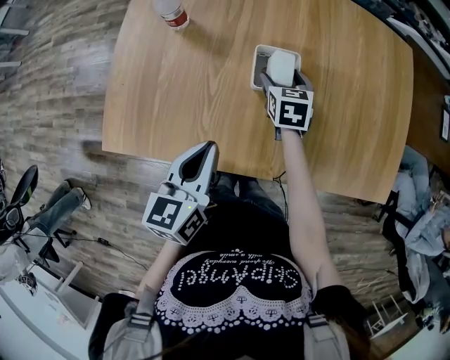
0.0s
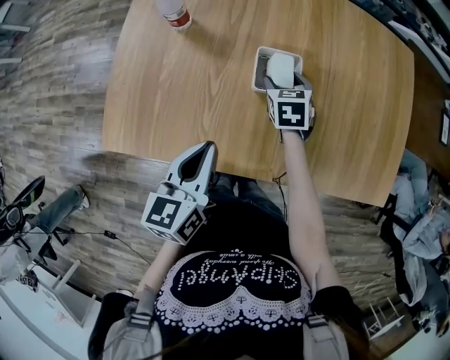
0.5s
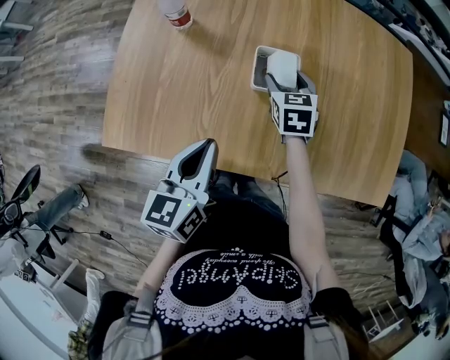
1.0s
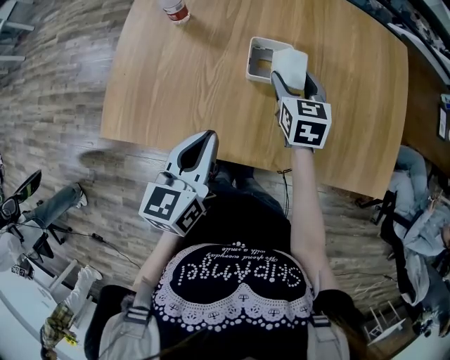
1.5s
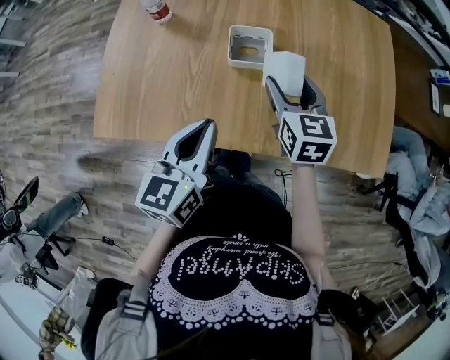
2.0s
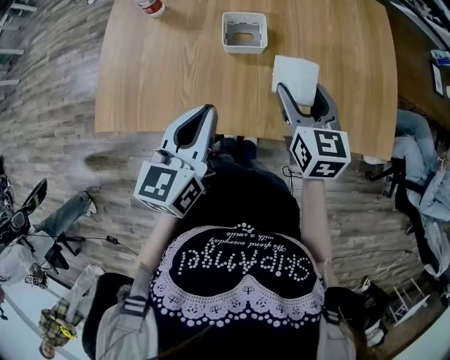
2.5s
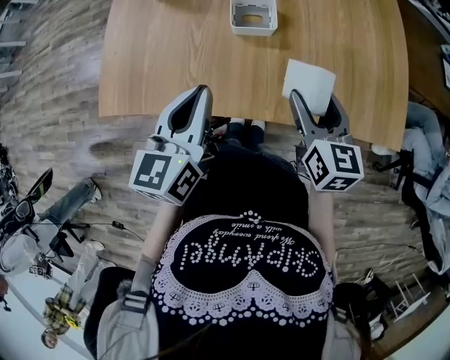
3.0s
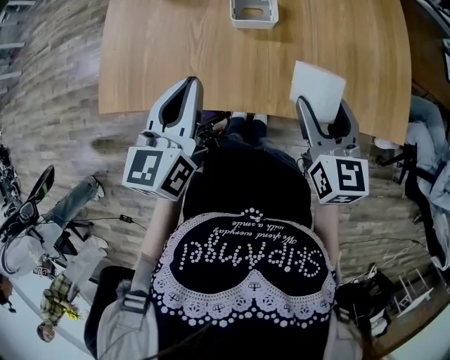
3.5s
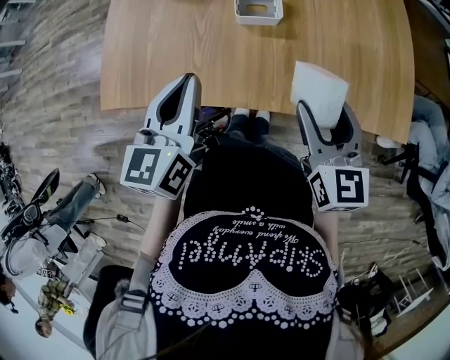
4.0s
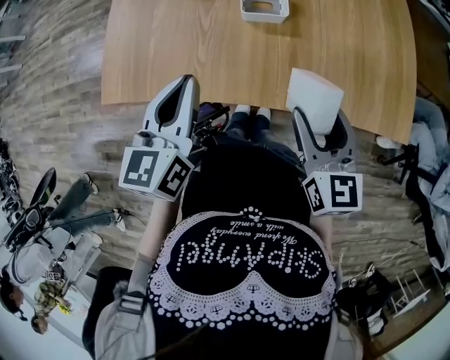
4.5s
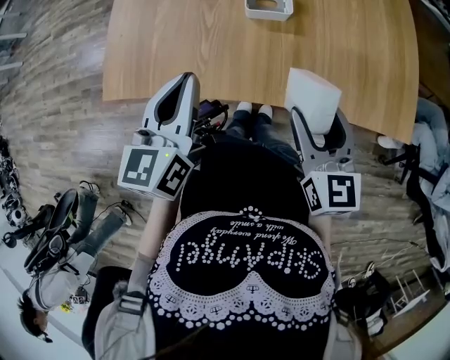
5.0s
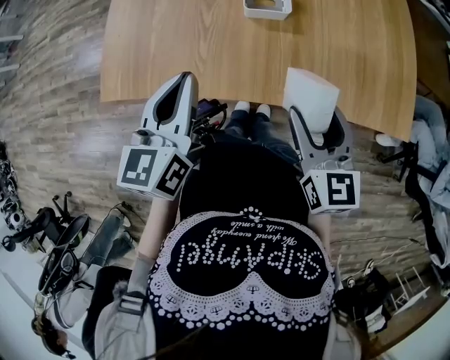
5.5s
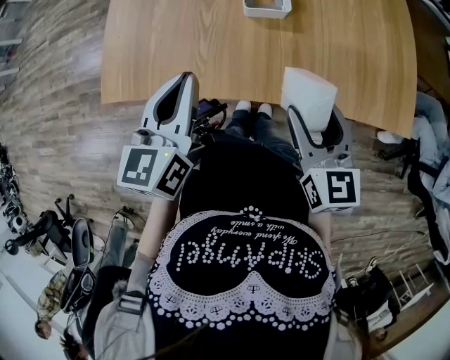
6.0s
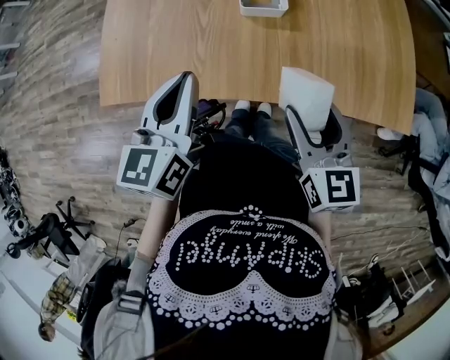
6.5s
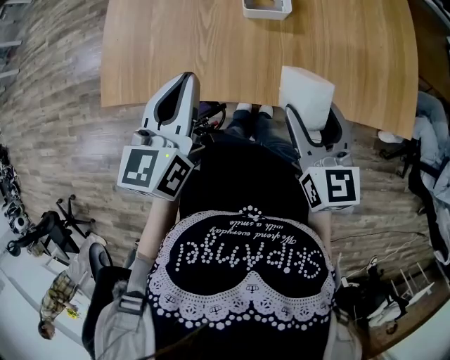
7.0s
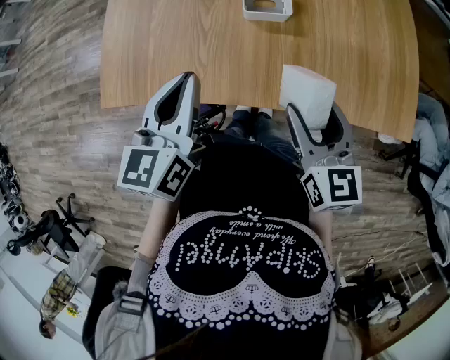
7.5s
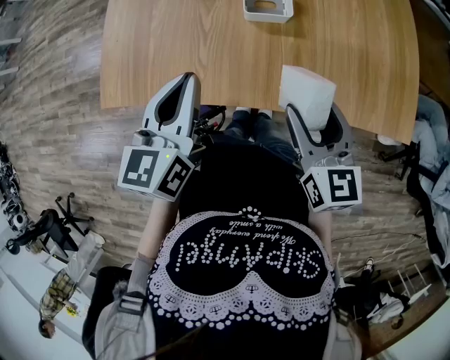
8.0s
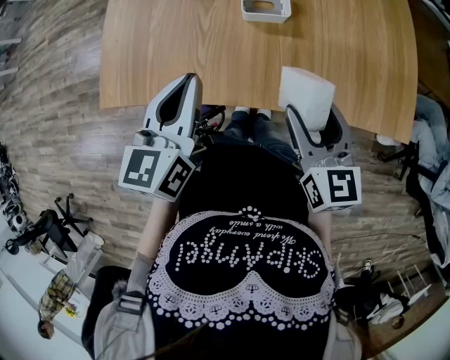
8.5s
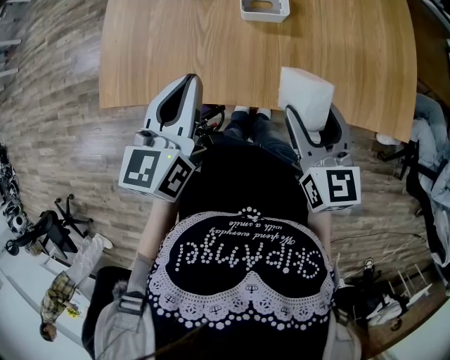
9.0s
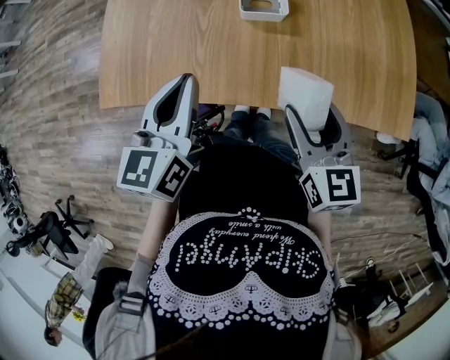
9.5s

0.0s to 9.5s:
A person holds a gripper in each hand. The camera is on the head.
0.0s to 2.0s: The right gripper heads upward, backward and to the right, covering roughly 20 cm. Meanwhile the left gripper ends up approximately 5 cm from where it was.
2.0s to 4.0s: The left gripper moves to the left, approximately 5 cm, while the right gripper moves backward, roughly 15 cm.
4.0s to 5.5s: The grippers make only small movements.
5.5s to 9.5s: Neither gripper changes place.

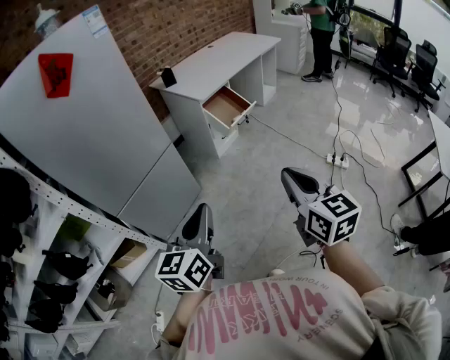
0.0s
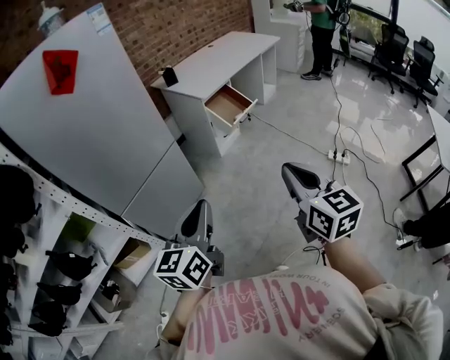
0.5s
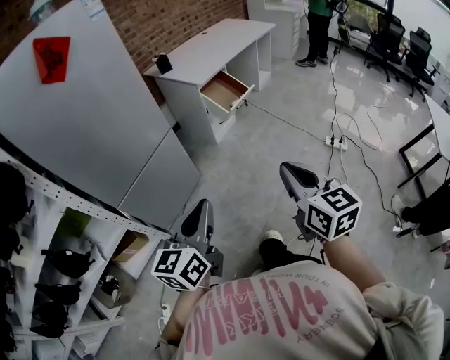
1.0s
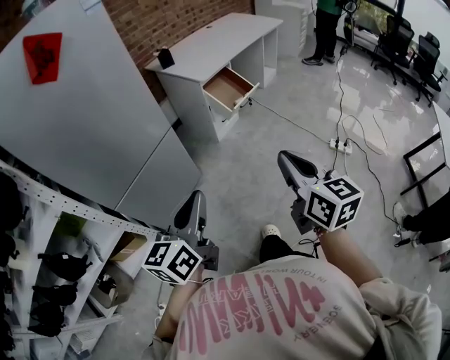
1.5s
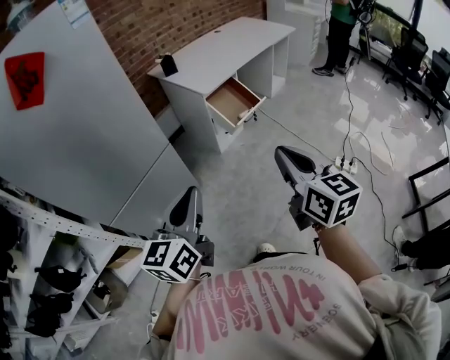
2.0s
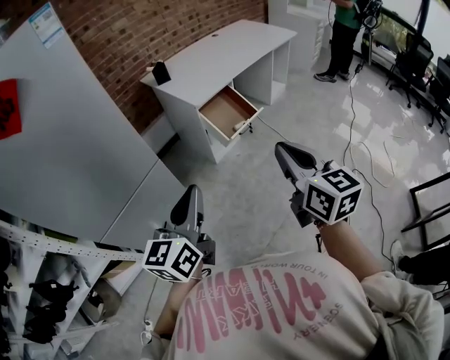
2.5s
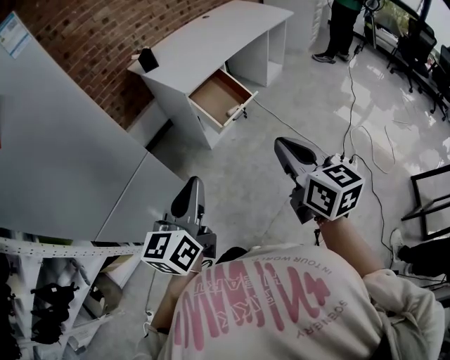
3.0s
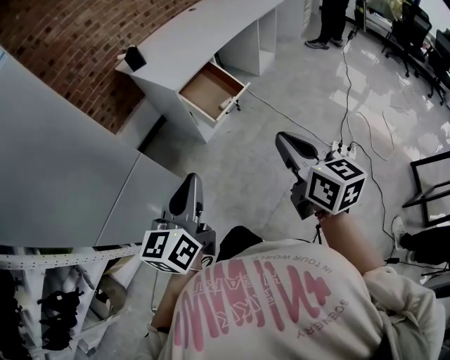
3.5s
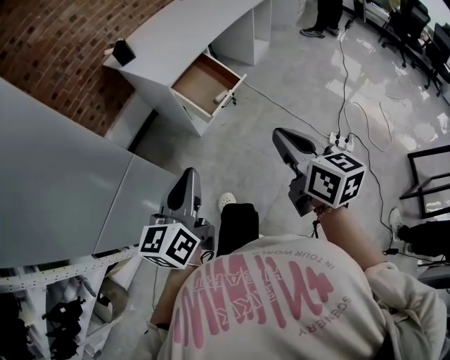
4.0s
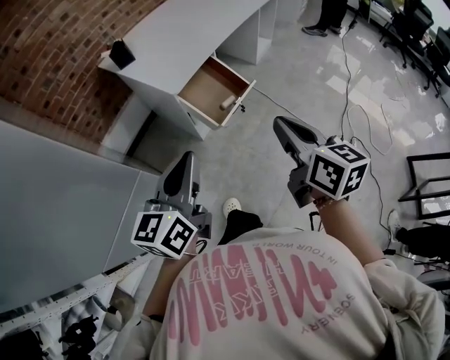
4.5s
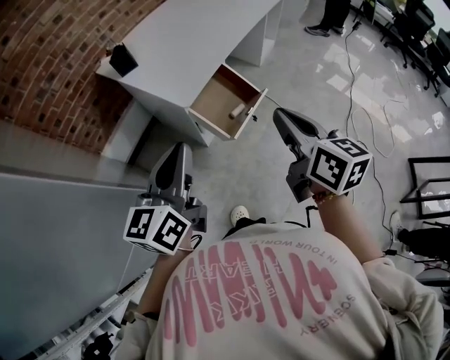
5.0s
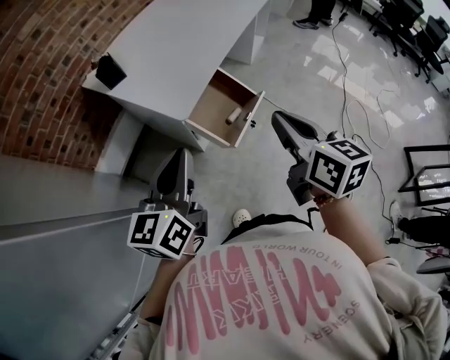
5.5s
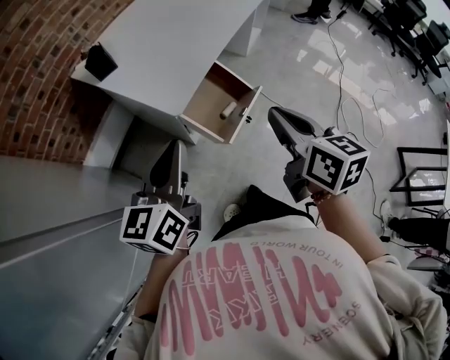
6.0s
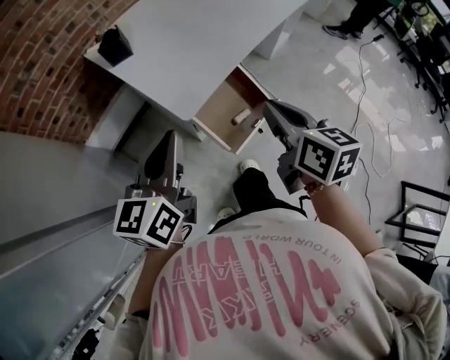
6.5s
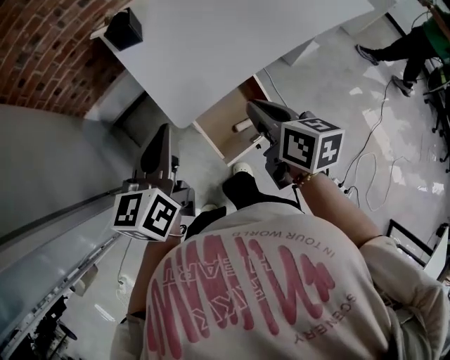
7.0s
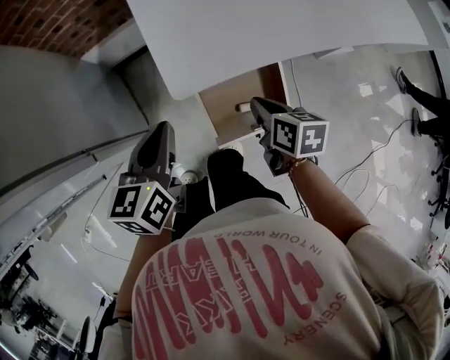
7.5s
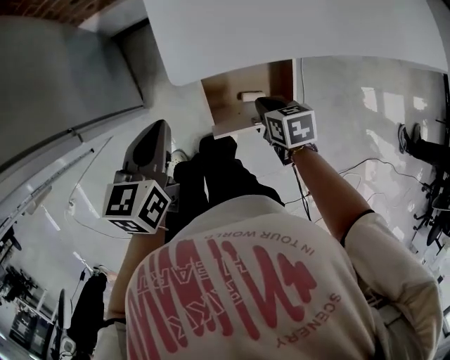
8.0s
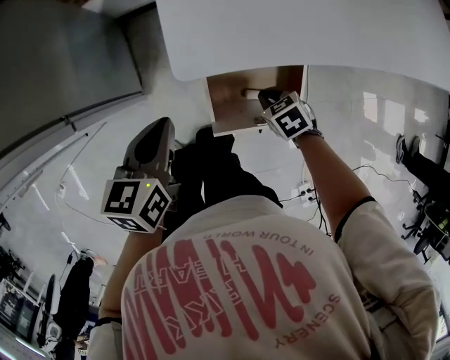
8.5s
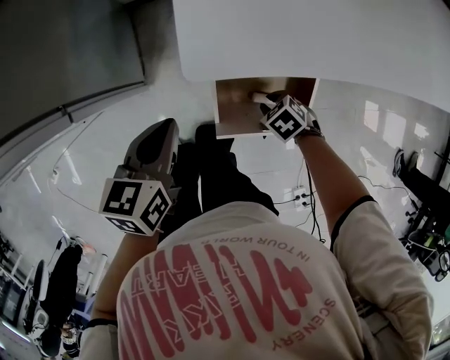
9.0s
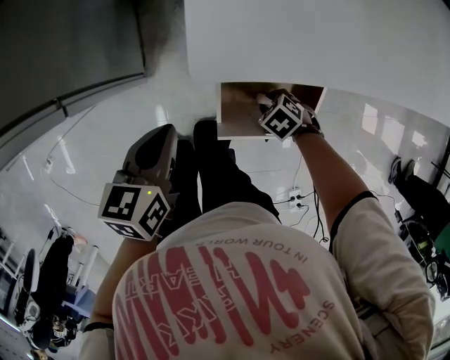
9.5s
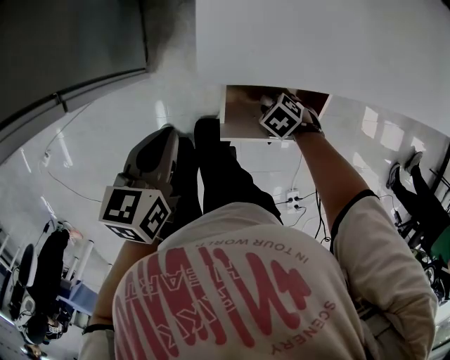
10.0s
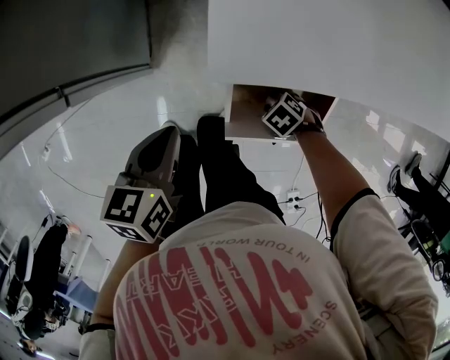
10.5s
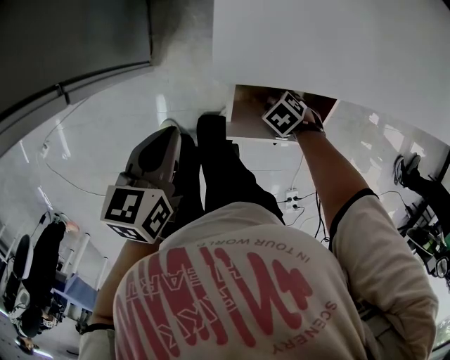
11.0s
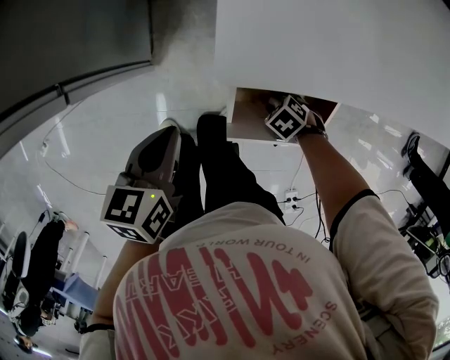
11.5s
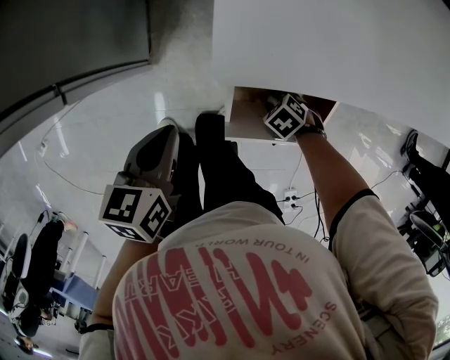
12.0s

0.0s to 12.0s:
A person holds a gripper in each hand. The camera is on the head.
0.0s to 2.0s: The two grippers go roughly 15 cm forward.
2.0s to 4.0s: The right gripper is displaced forward, to the right and downward by approximately 20 cm. The left gripper shifts roughly 20 cm forward and to the right.
4.0s to 6.0s: The right gripper goes about 30 cm forward and to the left; the left gripper shifts roughly 30 cm forward.
6.0s to 8.0s: The left gripper is displaced downward by about 20 cm, and turns by approximately 50 degrees, while the right gripper travels downward by roughly 35 cm, and tilts its fingers some 40 degrees downward.
8.0s to 10.0s: The right gripper shifts some 15 cm downward, twists roughly 50 degrees counterclockwise, seen from behind, and opens up. Meanwhile the left gripper travels downward by some 10 cm.
10.0s to 12.0s: The grippers make only small movements.

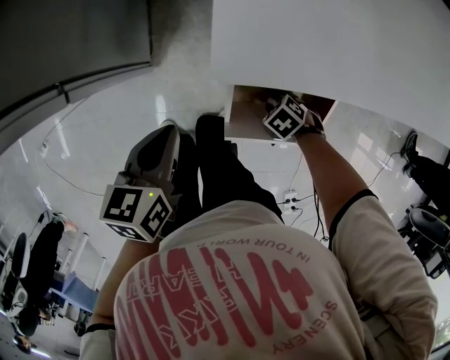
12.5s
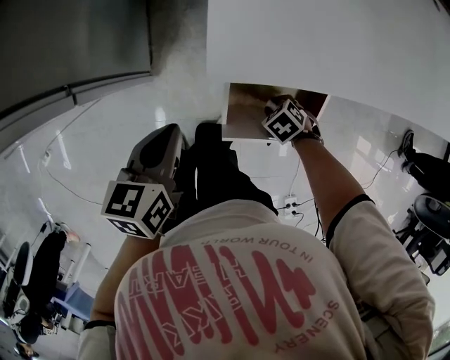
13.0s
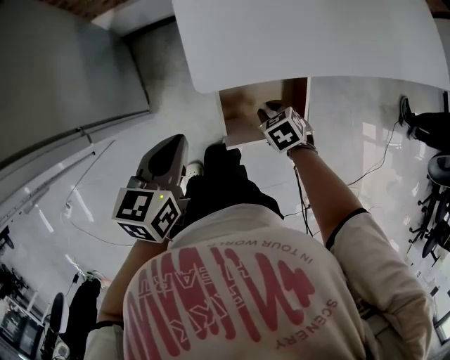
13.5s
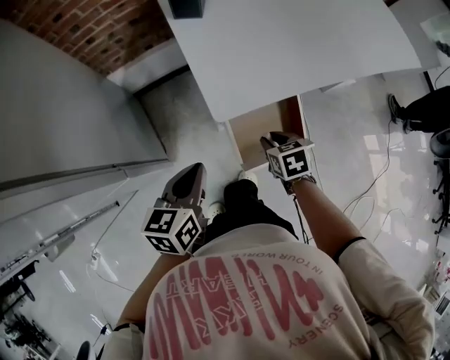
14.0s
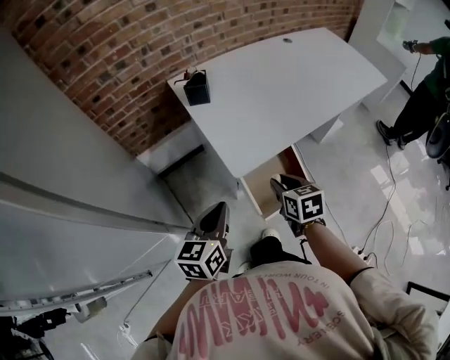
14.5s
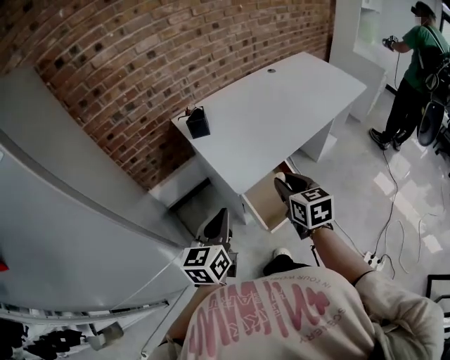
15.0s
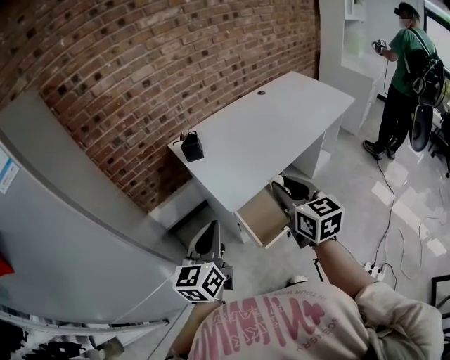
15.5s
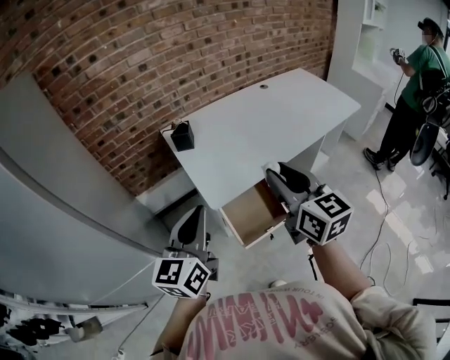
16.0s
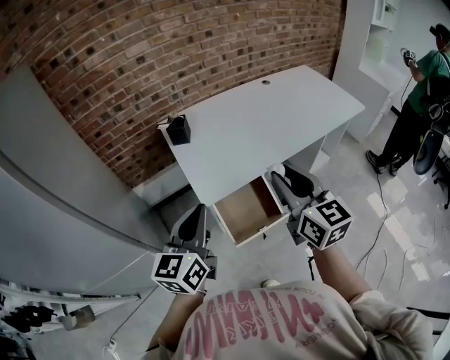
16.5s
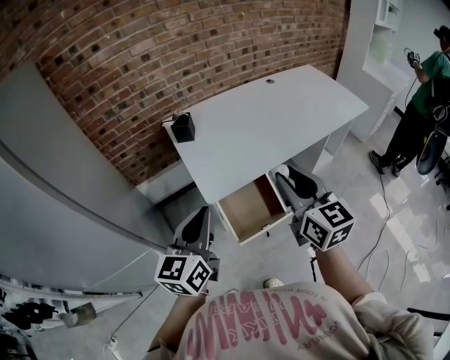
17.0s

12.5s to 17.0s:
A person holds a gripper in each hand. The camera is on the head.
12.5s to 14.5s: The left gripper is displaced upward by about 20 cm, and turns by roughly 40 degrees, while the right gripper is displaced upward by roughly 40 cm, and angles its fingers upward, by some 40 degrees.
14.5s to 17.0s: The left gripper moves upward and to the right, some 20 cm, while the right gripper heads upward and to the right, covering roughly 30 cm, and angles its fingers upward, by some 40 degrees.

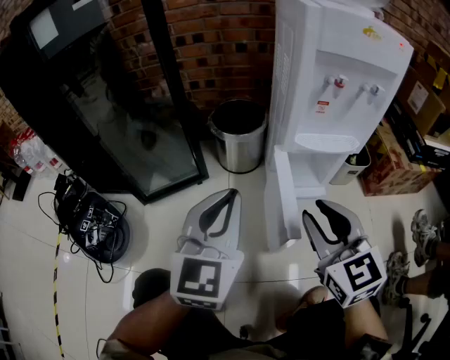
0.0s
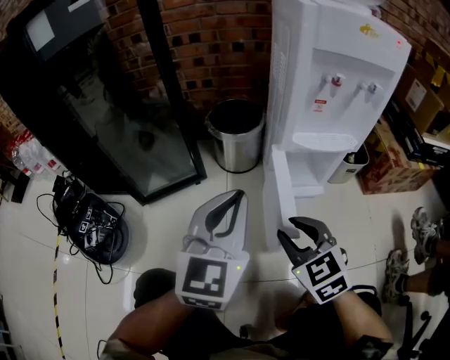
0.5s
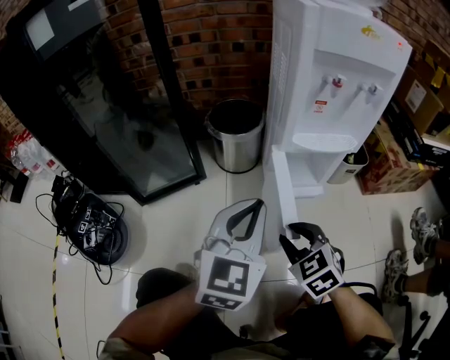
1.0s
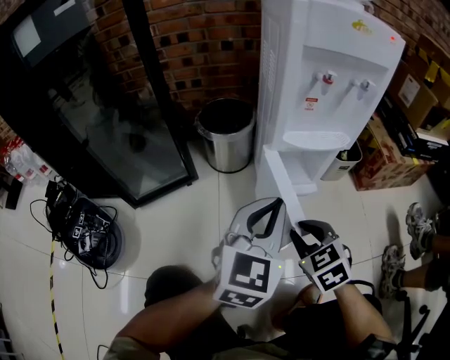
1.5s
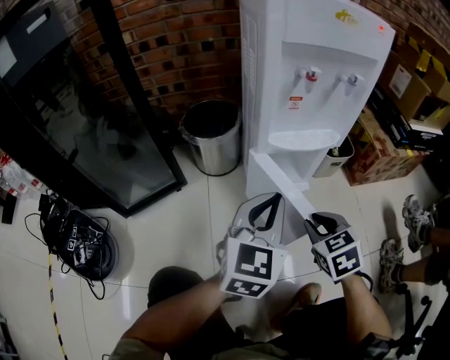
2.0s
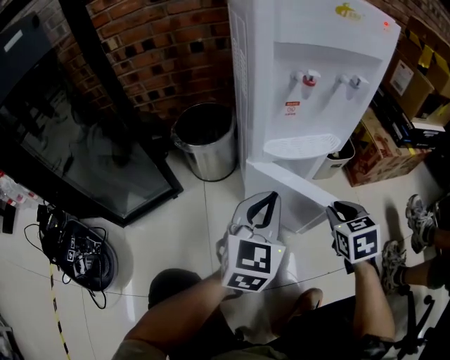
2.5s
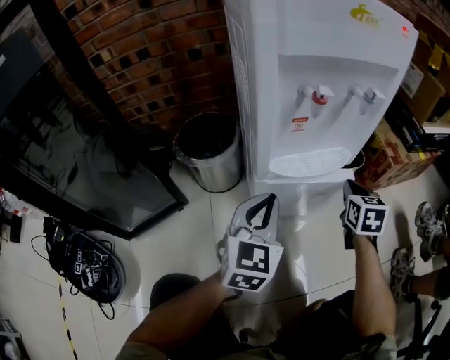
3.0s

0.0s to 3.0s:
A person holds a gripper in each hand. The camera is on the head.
0.0s to 1.5s: The right gripper shifts some 15 cm downward, and changes its angle by about 30 degrees. Meanwhile the left gripper shifts roughly 10 cm to the right.
1.5s to 3.0s: The left gripper shifts some 15 cm forward and downward; the right gripper is displaced forward and to the right by some 30 cm, swivels approximately 40 degrees, and closes its fingers.
